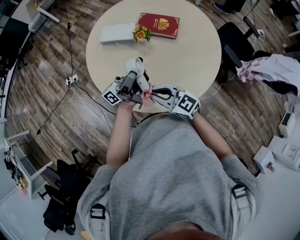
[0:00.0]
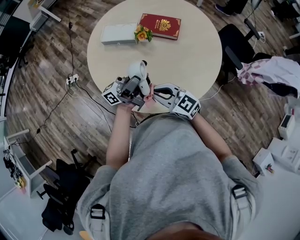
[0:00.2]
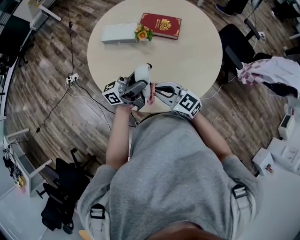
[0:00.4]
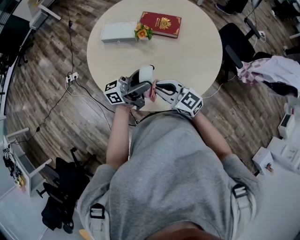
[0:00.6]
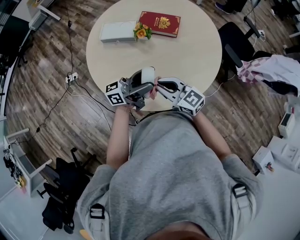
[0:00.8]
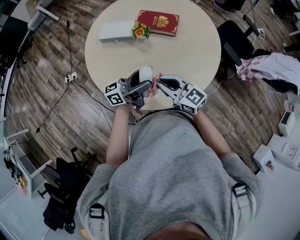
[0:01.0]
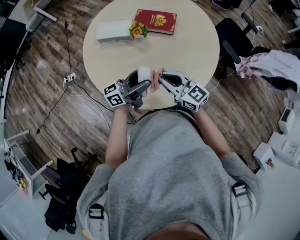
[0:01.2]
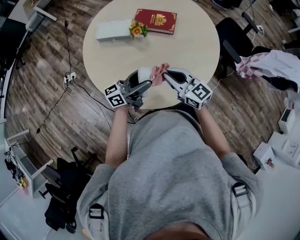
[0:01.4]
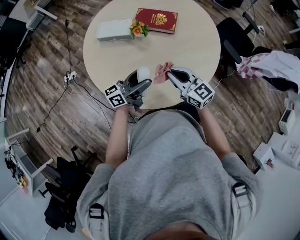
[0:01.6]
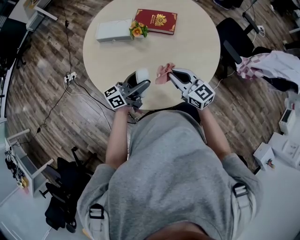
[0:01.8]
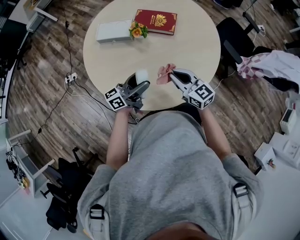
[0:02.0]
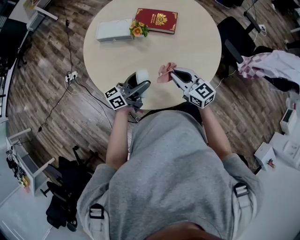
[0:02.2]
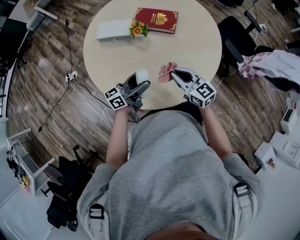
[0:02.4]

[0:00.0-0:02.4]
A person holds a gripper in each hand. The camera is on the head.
0:00.0 to 0:01.2: The left gripper shifts about 5 cm downward, and changes its angle by about 30 degrees. Meanwhile the right gripper shifts roughly 5 cm to the right.
0:01.2 to 0:02.4: The right gripper goes roughly 5 cm to the right.

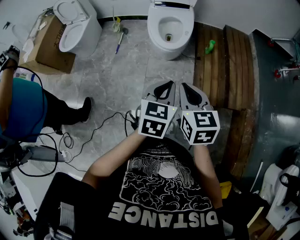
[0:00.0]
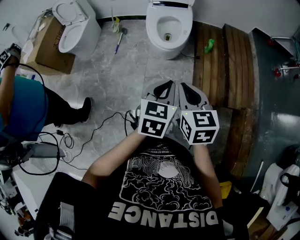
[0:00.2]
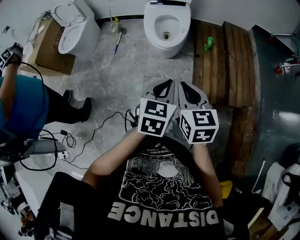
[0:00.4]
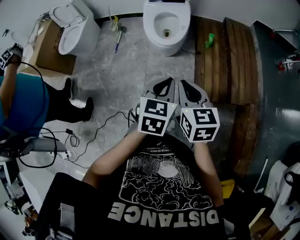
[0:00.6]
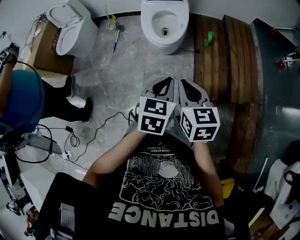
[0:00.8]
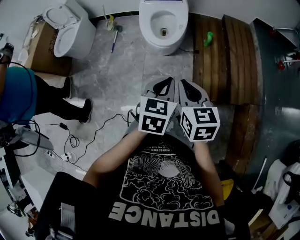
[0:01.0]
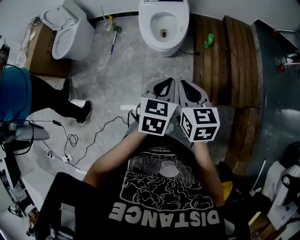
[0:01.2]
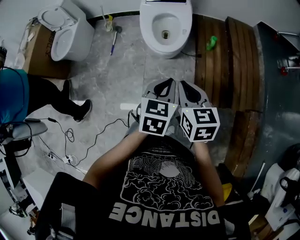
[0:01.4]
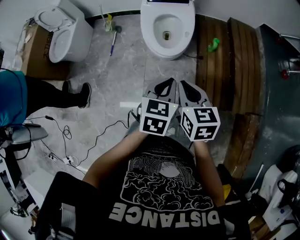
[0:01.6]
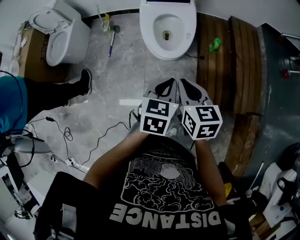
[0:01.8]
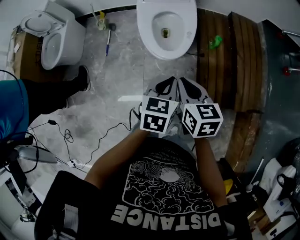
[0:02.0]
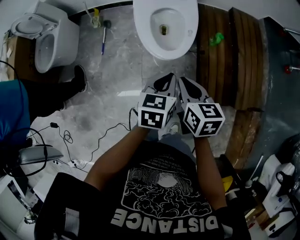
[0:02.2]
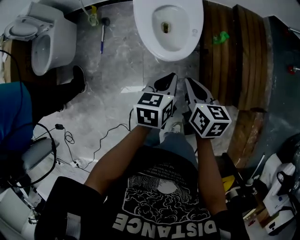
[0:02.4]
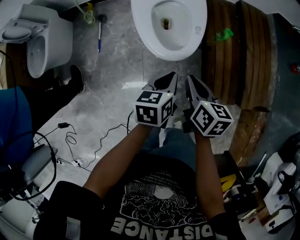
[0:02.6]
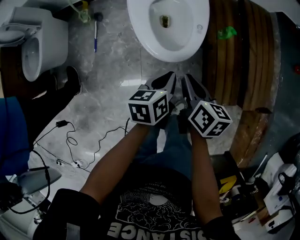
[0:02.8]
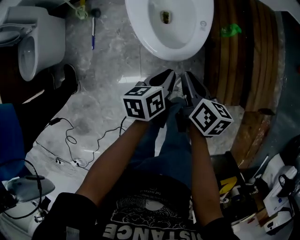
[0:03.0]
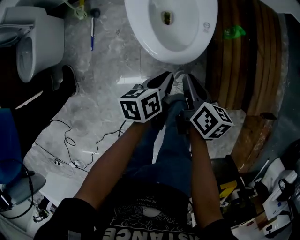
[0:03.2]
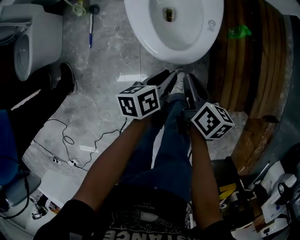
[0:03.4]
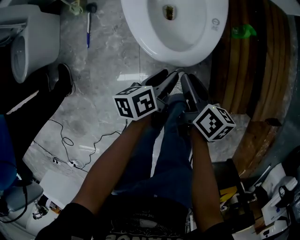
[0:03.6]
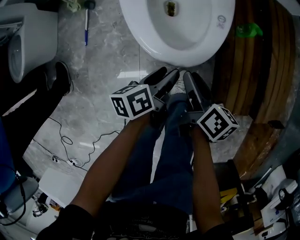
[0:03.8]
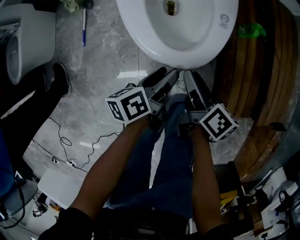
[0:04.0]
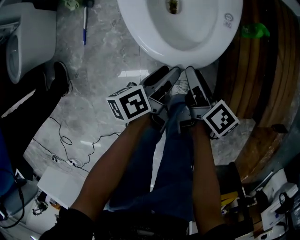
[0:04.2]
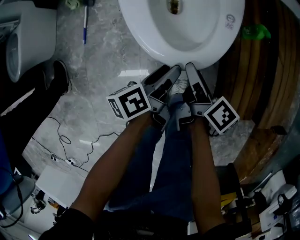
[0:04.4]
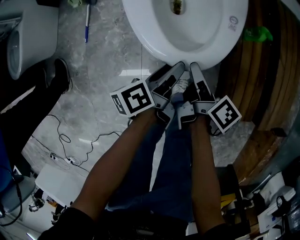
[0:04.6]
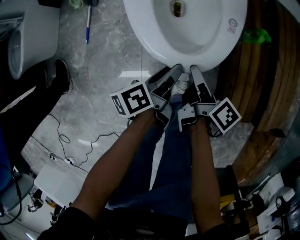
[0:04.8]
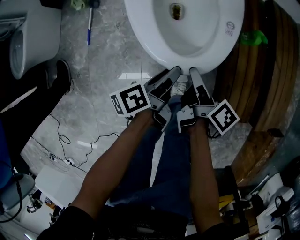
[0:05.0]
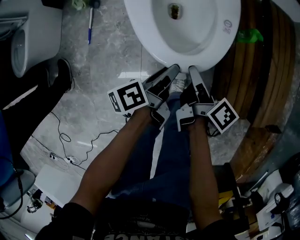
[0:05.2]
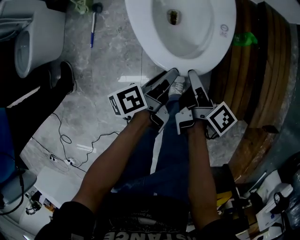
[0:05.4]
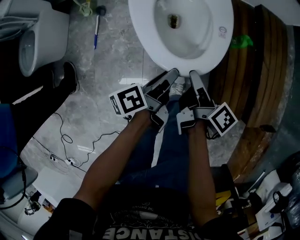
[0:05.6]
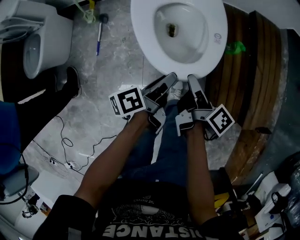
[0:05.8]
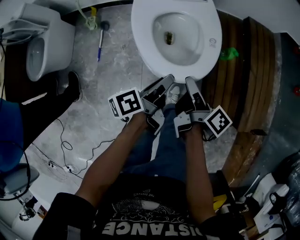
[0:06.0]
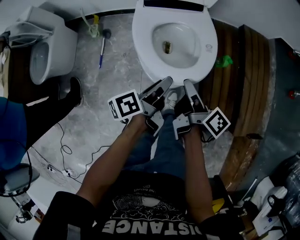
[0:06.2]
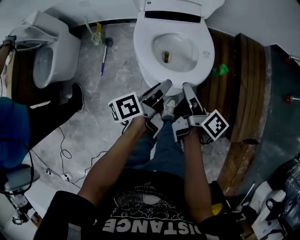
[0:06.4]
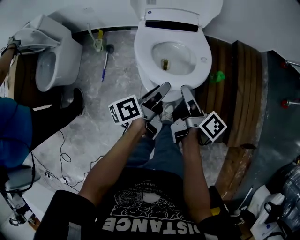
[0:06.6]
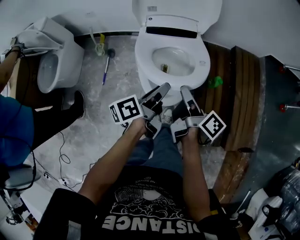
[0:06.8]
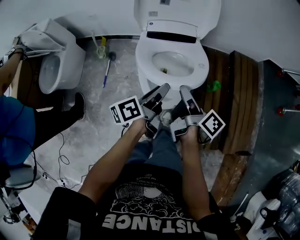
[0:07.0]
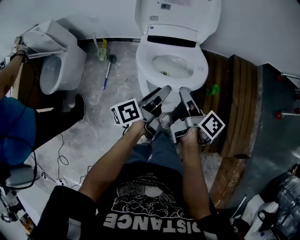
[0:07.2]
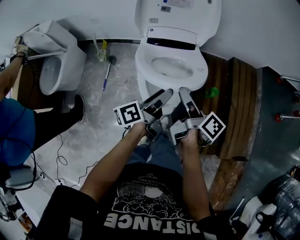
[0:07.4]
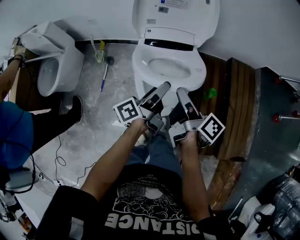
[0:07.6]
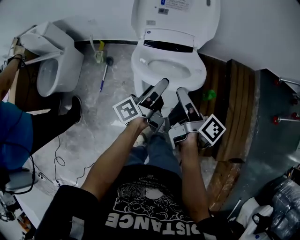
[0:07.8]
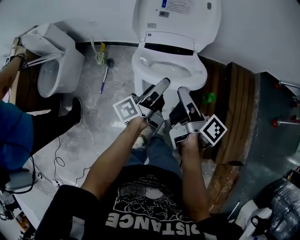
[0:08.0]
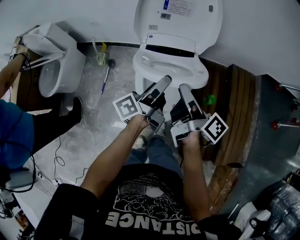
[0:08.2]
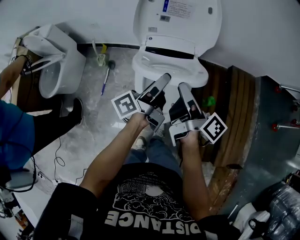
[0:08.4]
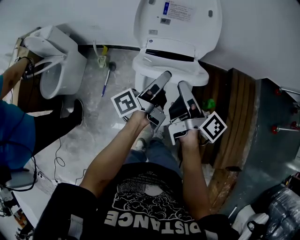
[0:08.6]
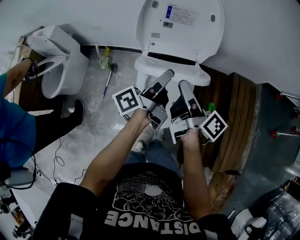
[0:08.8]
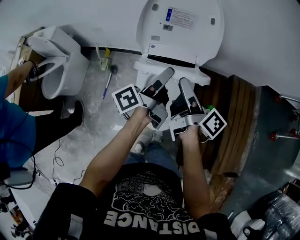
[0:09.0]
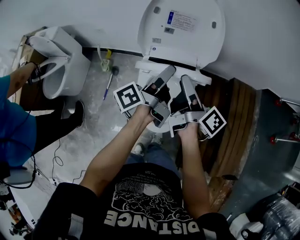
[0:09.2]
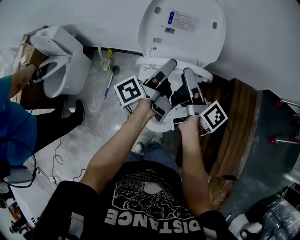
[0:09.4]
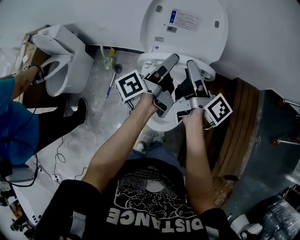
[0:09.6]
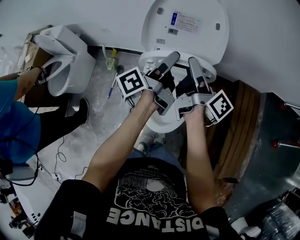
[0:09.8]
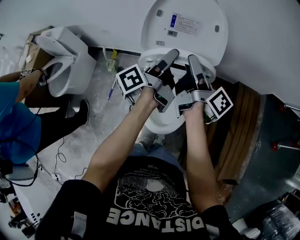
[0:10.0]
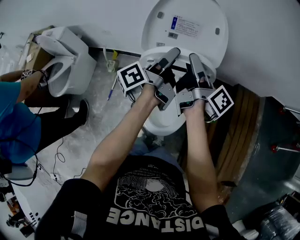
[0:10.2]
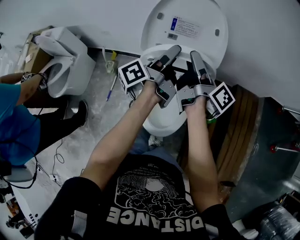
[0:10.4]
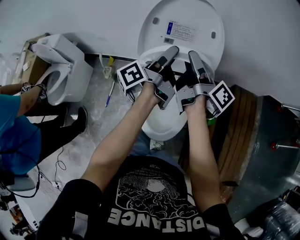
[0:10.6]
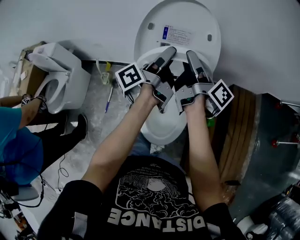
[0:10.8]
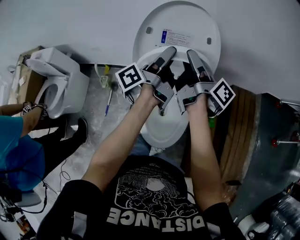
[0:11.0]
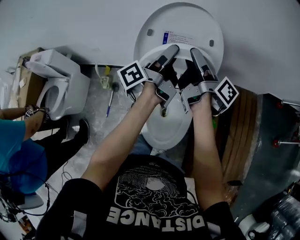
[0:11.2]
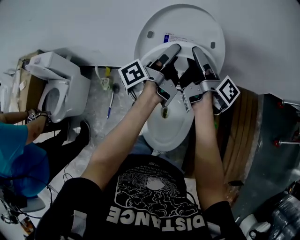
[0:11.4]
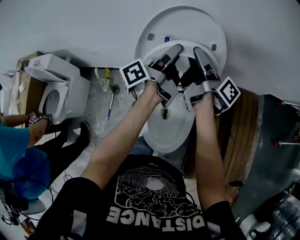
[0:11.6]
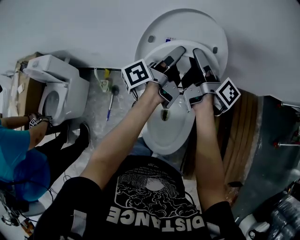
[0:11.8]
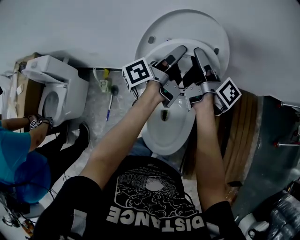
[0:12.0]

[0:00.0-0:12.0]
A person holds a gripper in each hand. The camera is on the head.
0:00.0 to 0:01.6: The two grippers go some 20 cm forward.
0:01.6 to 0:03.0: Both grippers move downward and forward, some 30 cm. The left gripper turns by roughly 40 degrees, while the right gripper turns by about 40 degrees.
0:03.0 to 0:04.4: The grippers both shift downward by approximately 15 cm. The left gripper swivels some 30 degrees, and opens its fingers, while the right gripper turns by approximately 20 degrees, and opens.
0:04.4 to 0:06.0: The two grippers go approximately 20 cm upward. The right gripper closes.
0:06.0 to 0:07.6: The two grippers go some 20 cm upward and forward. The left gripper turns by some 20 degrees, and opens up.
0:07.6 to 0:09.0: The grippers both shift forward and upward by roughly 15 cm. The right gripper opens its fingers.
0:09.0 to 0:10.4: Both grippers move forward, approximately 10 cm.
0:10.4 to 0:12.0: Both grippers move forward, about 15 cm.

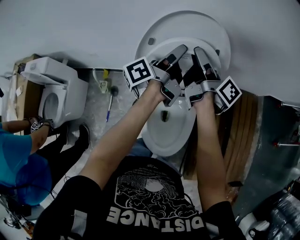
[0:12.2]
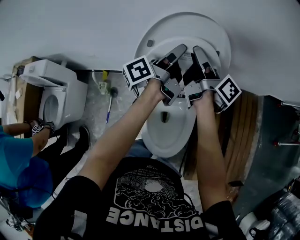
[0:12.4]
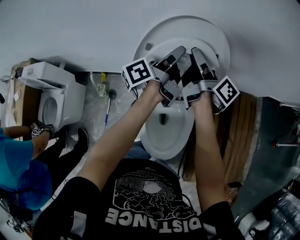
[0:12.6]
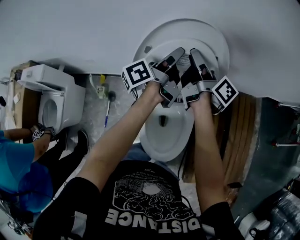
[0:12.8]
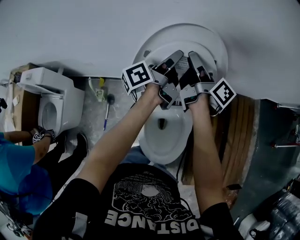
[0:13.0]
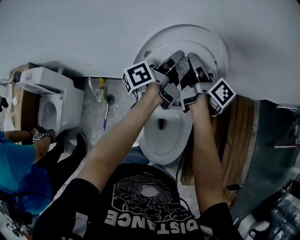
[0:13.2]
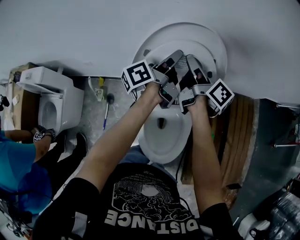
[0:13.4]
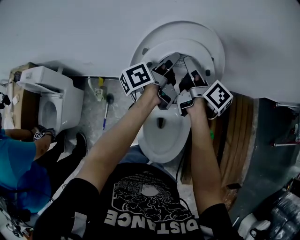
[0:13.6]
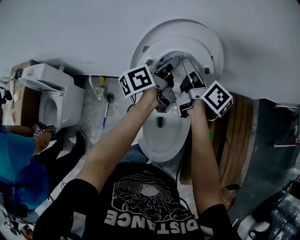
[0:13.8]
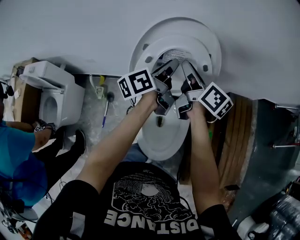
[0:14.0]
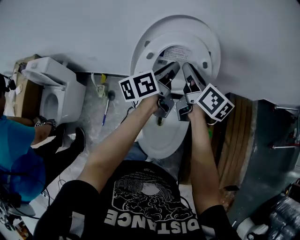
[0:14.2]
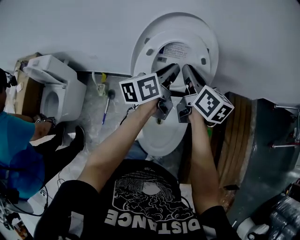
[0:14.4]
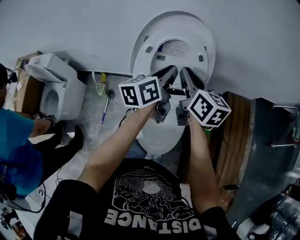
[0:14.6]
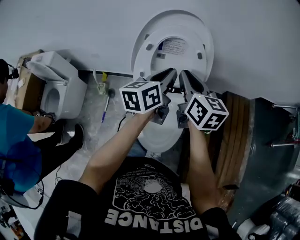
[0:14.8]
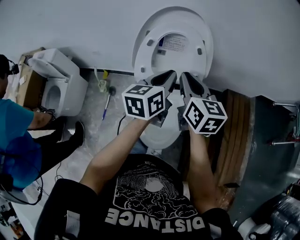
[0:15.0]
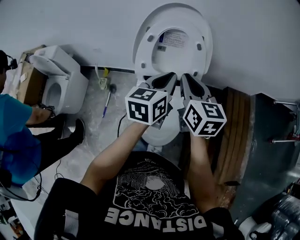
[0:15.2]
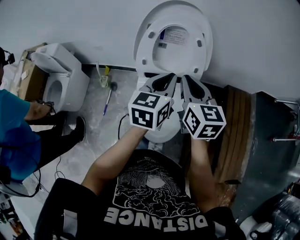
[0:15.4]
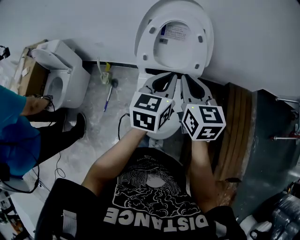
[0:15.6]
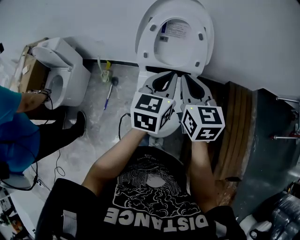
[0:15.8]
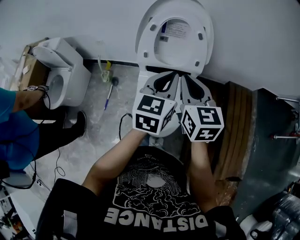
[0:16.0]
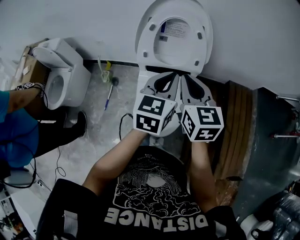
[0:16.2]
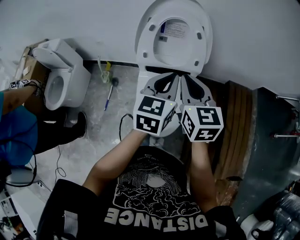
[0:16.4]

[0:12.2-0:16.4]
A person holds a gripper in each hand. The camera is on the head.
0:12.2 to 0:13.6: The grippers stay close to where they were, moving slightly.
0:13.6 to 0:15.0: Both grippers move backward, approximately 20 cm. The right gripper twists roughly 50 degrees counterclockwise, seen from behind, and closes up, while the left gripper twists roughly 40 degrees clockwise, seen from behind.
0:15.0 to 0:16.4: The grippers both shift backward by approximately 10 cm. The left gripper rotates approximately 20 degrees.

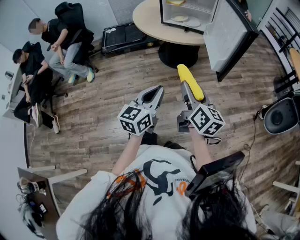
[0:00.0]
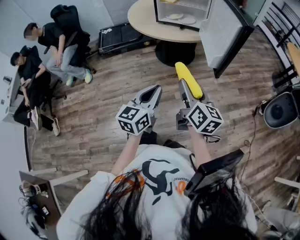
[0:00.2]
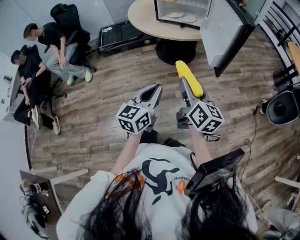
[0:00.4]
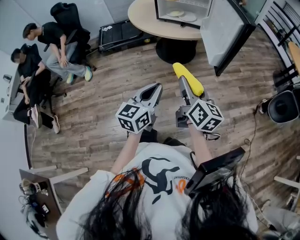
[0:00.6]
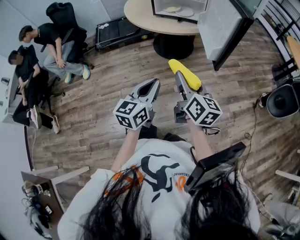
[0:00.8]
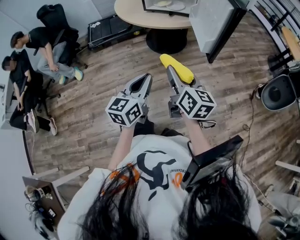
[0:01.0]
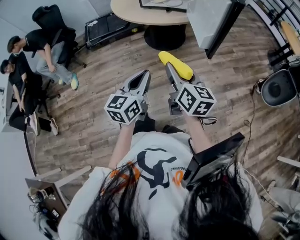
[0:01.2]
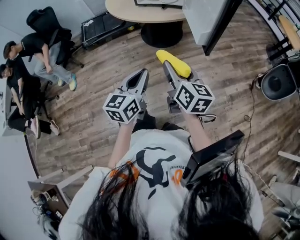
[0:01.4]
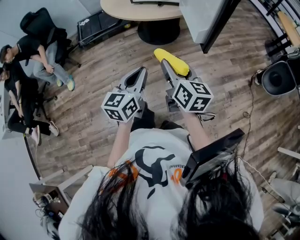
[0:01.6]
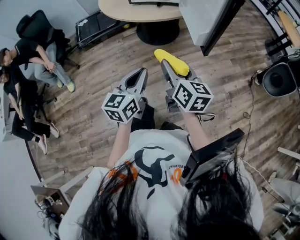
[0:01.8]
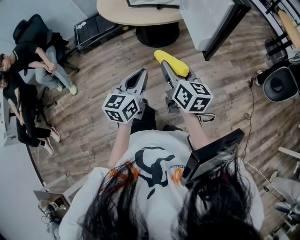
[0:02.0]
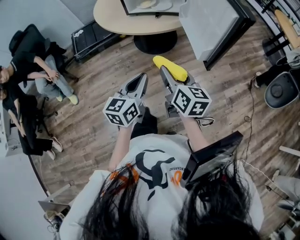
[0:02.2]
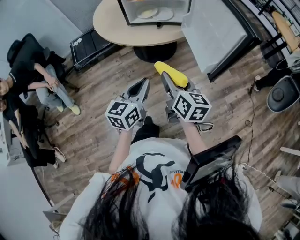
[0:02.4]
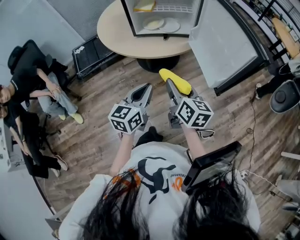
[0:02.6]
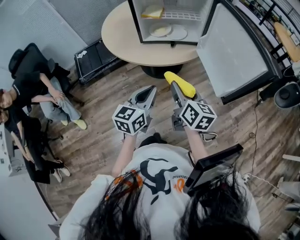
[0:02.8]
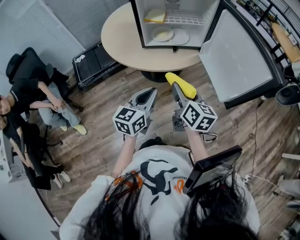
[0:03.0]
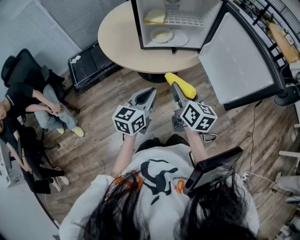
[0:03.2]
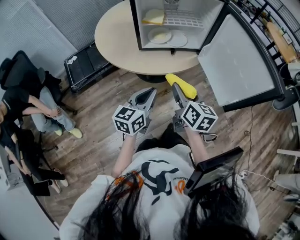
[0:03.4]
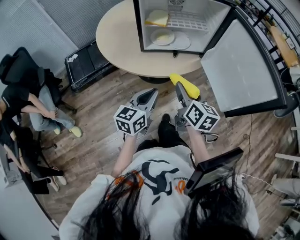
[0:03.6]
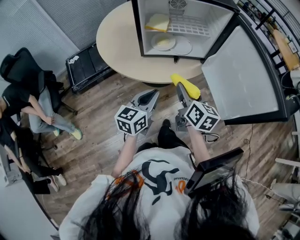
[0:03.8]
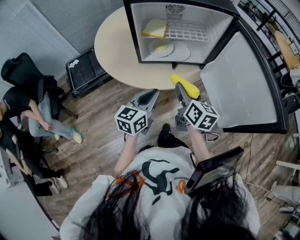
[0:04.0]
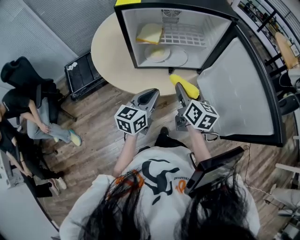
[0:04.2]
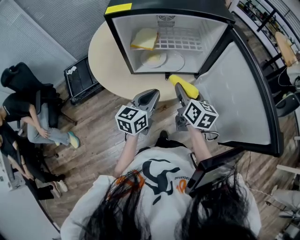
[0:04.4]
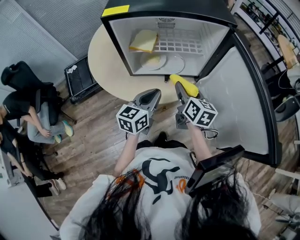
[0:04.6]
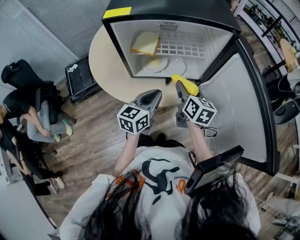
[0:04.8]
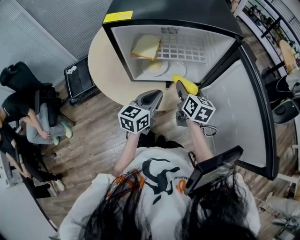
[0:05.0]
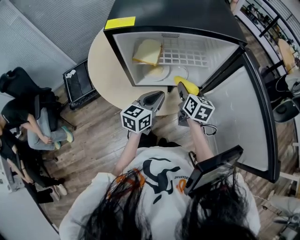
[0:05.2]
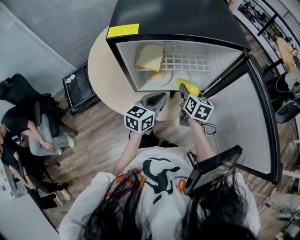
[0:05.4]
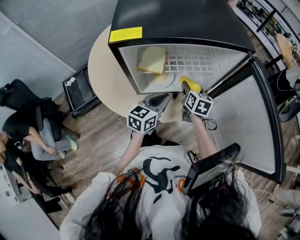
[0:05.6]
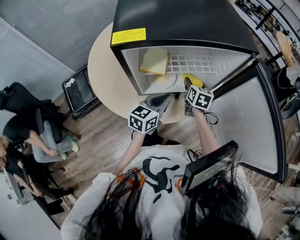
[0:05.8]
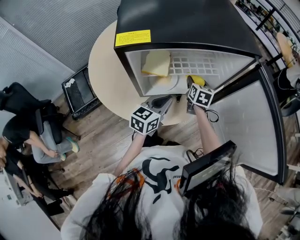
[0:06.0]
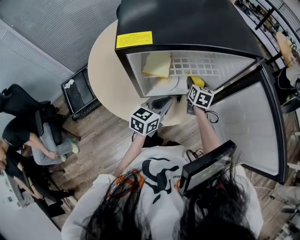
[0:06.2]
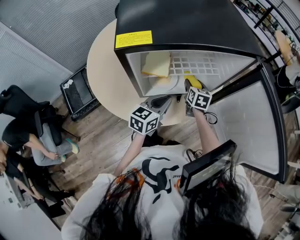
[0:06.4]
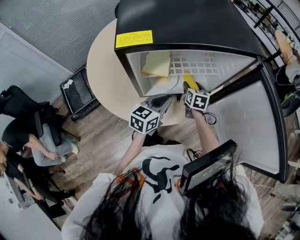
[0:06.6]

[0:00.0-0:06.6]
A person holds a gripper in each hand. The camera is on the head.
0:00.0 to 0:01.6: The left gripper moves about 5 cm.
0:01.6 to 0:03.2: Both grippers move forward and to the left, some 30 cm.
0:03.2 to 0:05.0: Both grippers move forward, about 25 cm.
0:05.0 to 0:06.6: The left gripper shifts some 5 cm forward, while the right gripper travels downward and forward by approximately 15 cm, and changes its angle by approximately 20 degrees.
